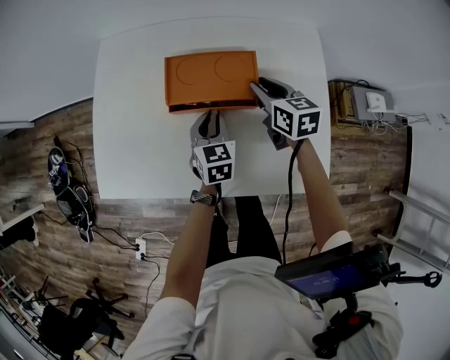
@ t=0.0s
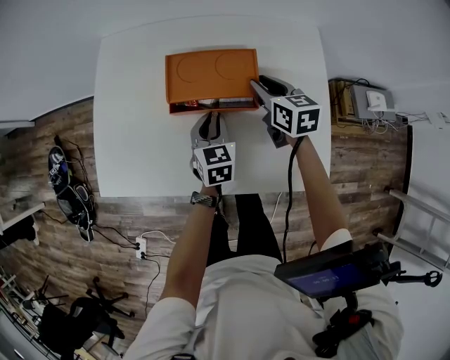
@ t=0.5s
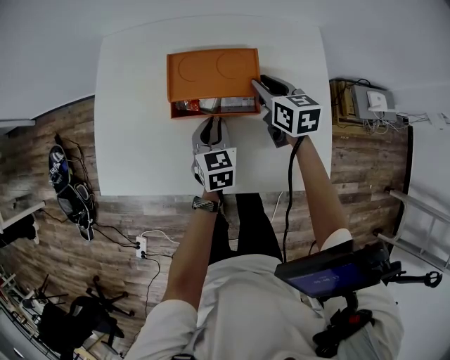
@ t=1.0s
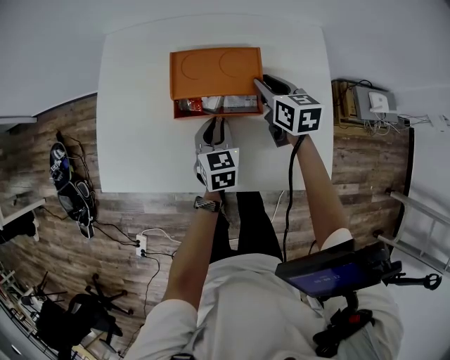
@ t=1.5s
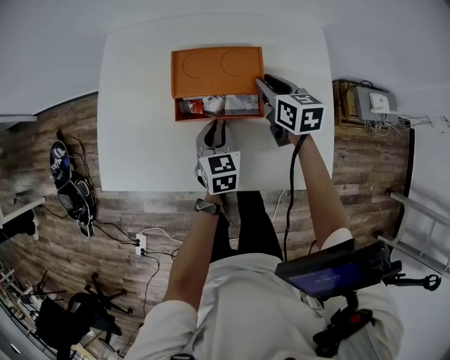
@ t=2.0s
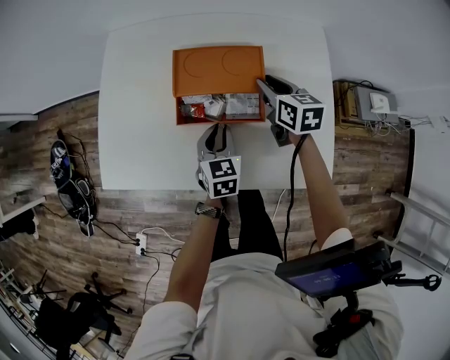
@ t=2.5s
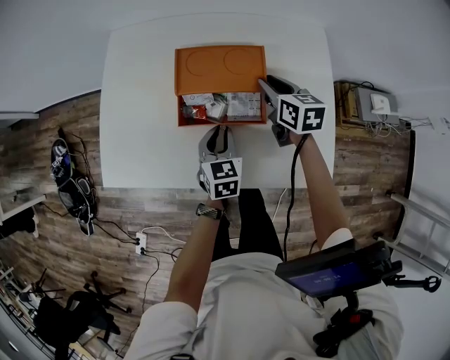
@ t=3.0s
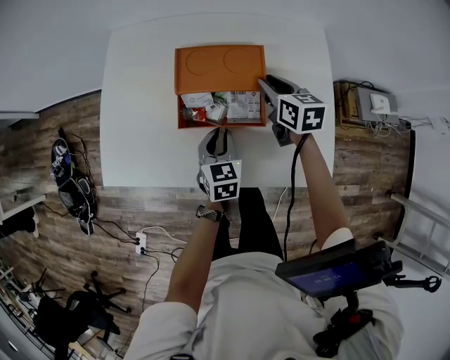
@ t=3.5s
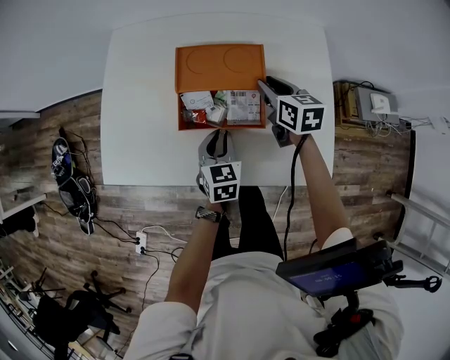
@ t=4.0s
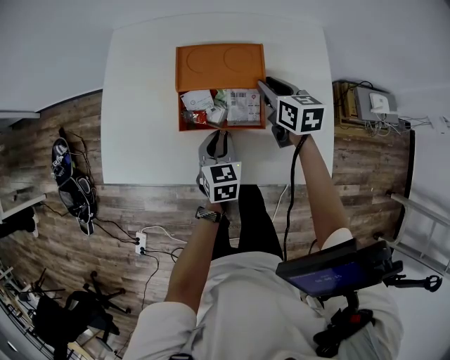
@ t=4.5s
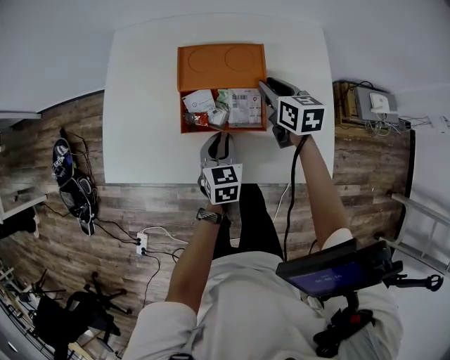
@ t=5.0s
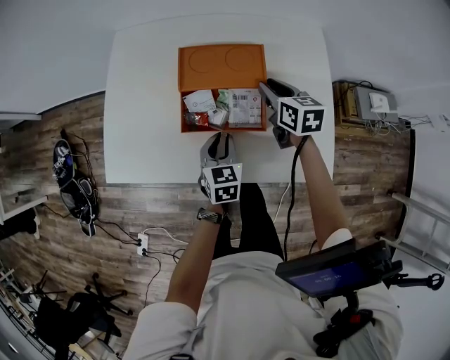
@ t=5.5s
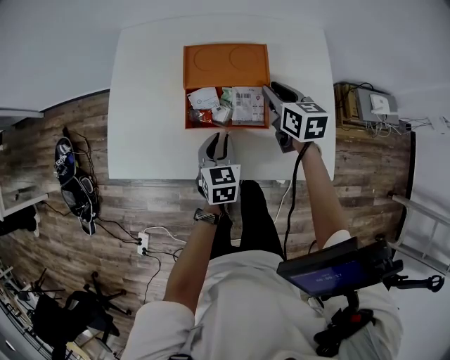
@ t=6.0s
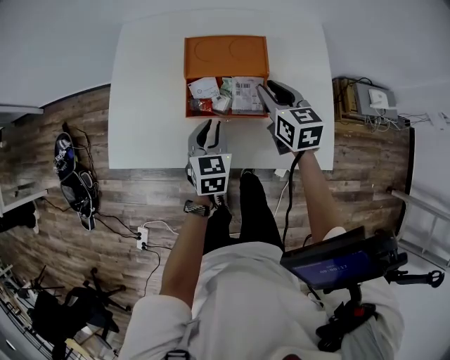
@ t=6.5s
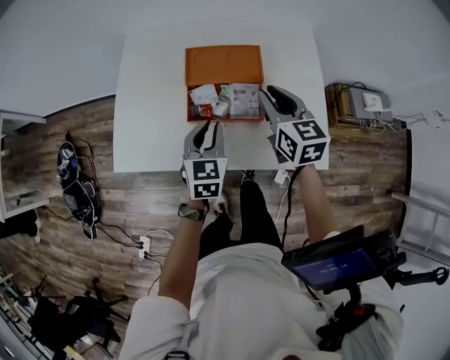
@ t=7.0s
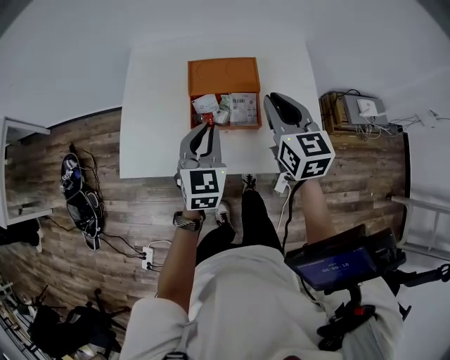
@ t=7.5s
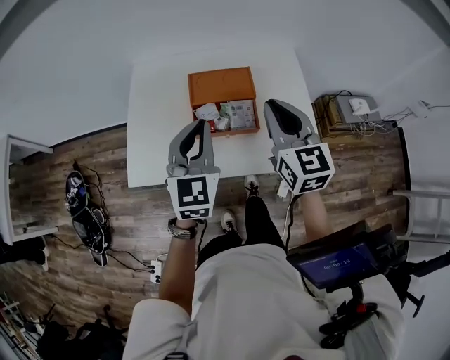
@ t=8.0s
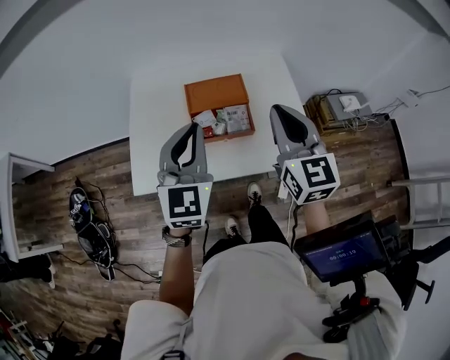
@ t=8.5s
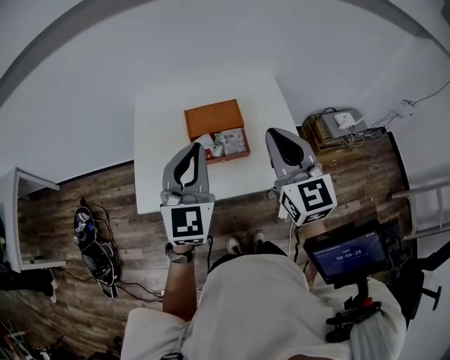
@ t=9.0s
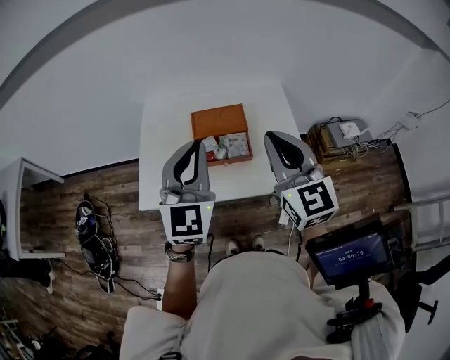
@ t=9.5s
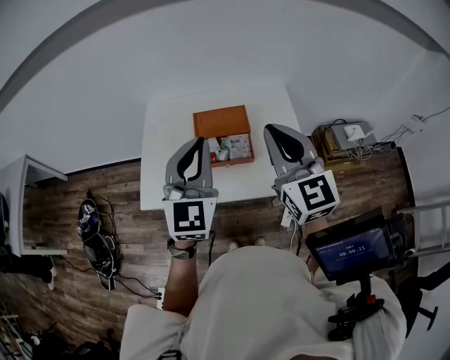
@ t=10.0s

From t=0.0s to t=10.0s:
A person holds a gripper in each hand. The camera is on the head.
From t=0.0s to t=2.0s: The grippers stay close to where they were, moving slightly.
From t=2.0s to t=4.0s: There are only small adjustments of the grippers.
From t=4.0s to t=6.0s: The two grippers keep their place.
From t=6.0s to t=8.0s: The right gripper shifts some 30 cm upward and backward, swivels approximately 30 degrees, and closes up; the left gripper is displaced upward by some 30 cm, and changes its angle by about 30 degrees.
From t=8.0s to t=10.0s: The left gripper travels upward by approximately 15 cm, while the right gripper is displaced upward and backward by approximately 15 cm.

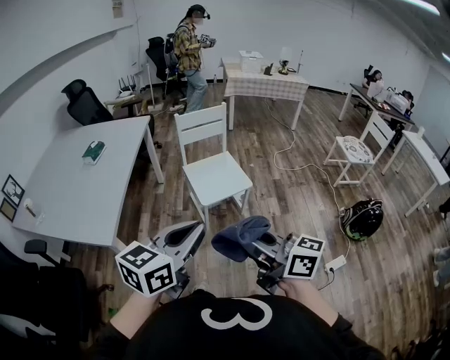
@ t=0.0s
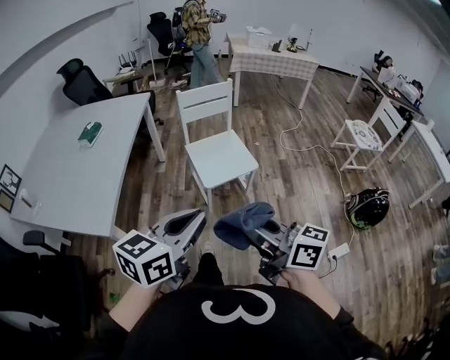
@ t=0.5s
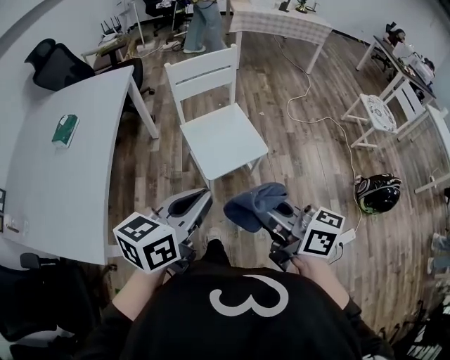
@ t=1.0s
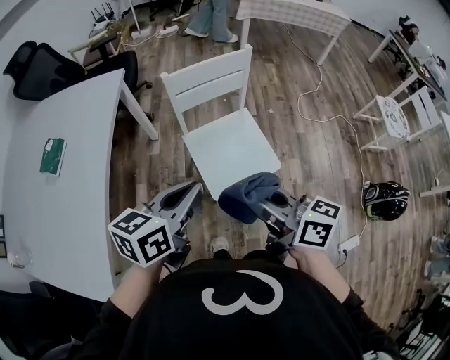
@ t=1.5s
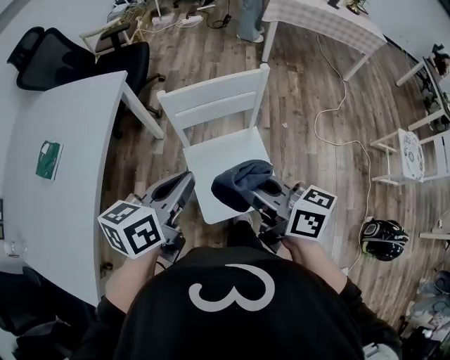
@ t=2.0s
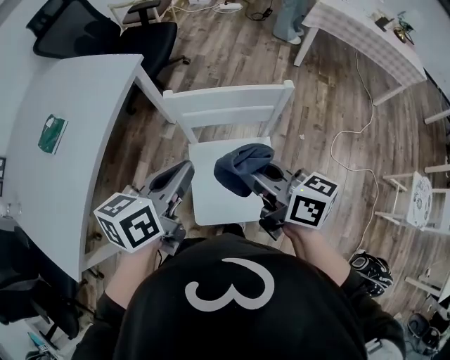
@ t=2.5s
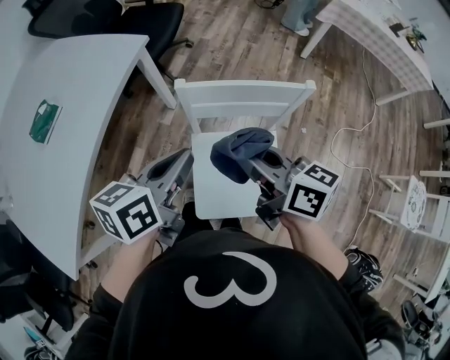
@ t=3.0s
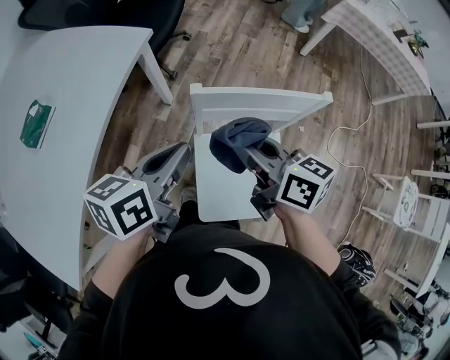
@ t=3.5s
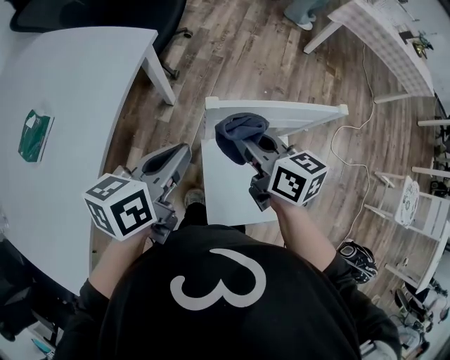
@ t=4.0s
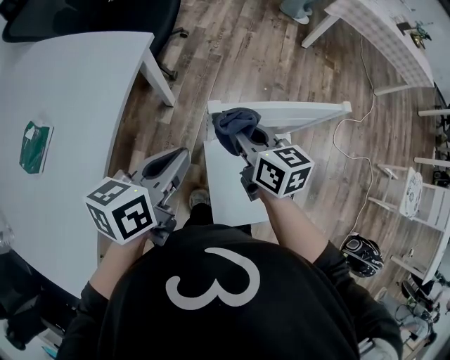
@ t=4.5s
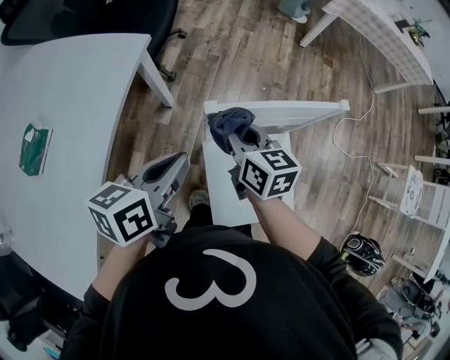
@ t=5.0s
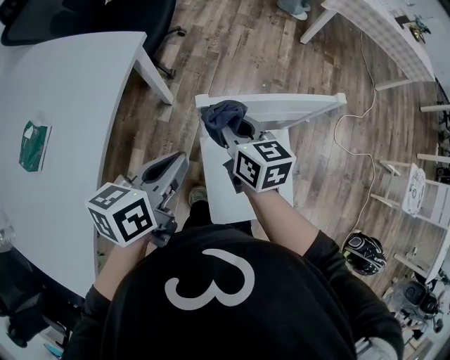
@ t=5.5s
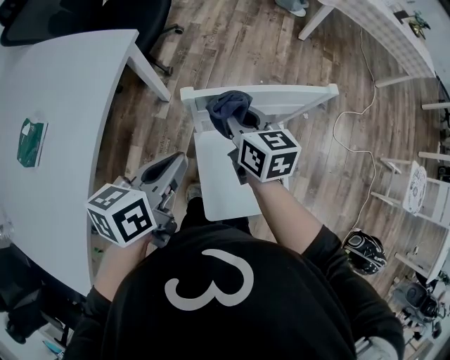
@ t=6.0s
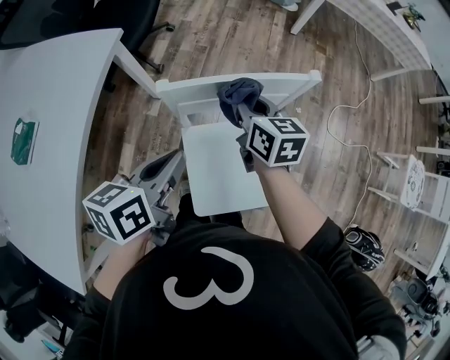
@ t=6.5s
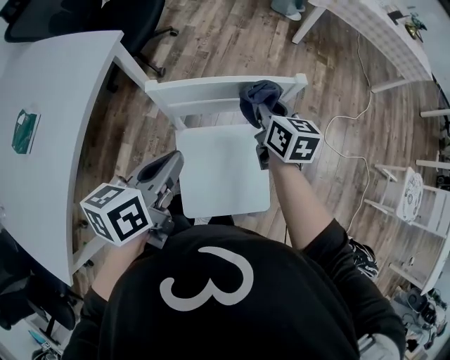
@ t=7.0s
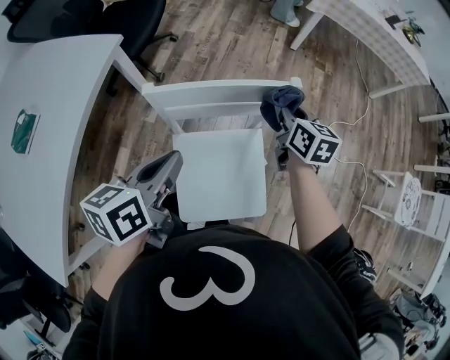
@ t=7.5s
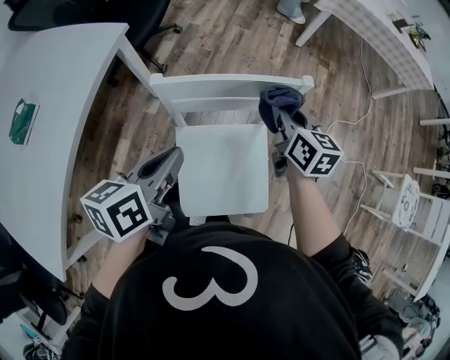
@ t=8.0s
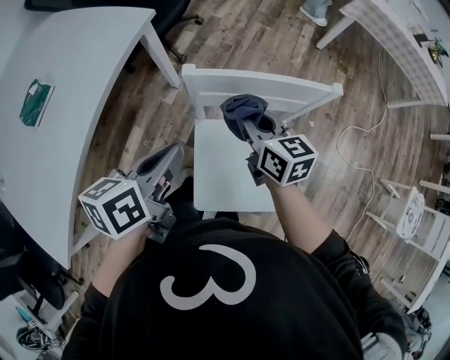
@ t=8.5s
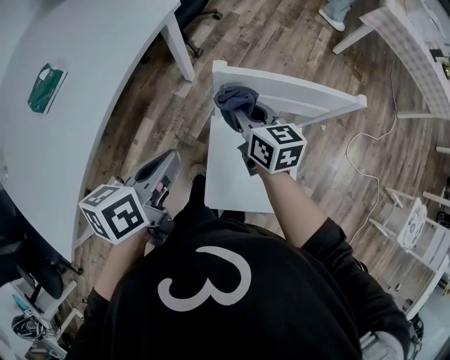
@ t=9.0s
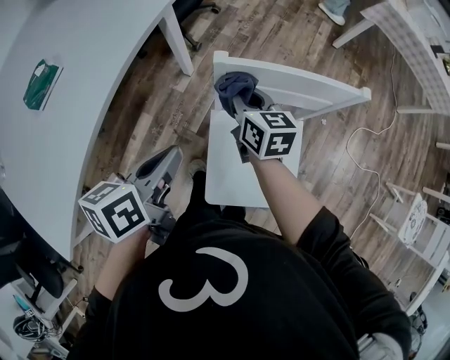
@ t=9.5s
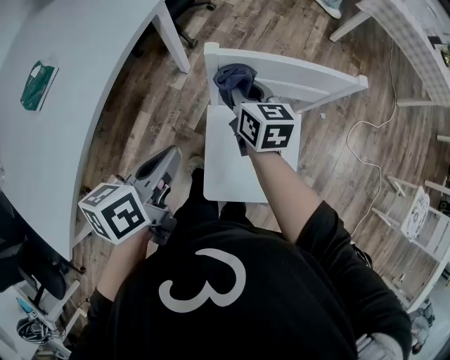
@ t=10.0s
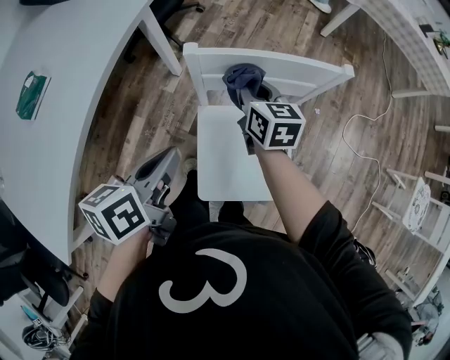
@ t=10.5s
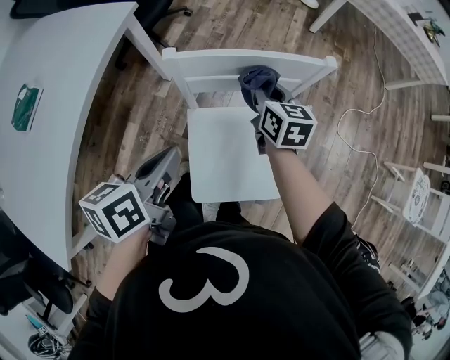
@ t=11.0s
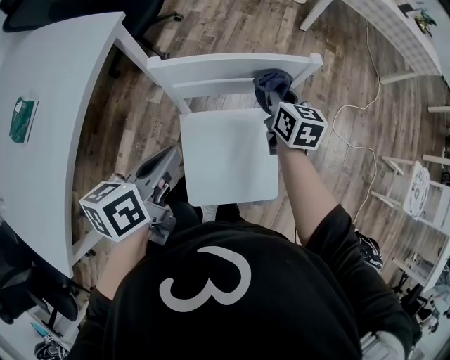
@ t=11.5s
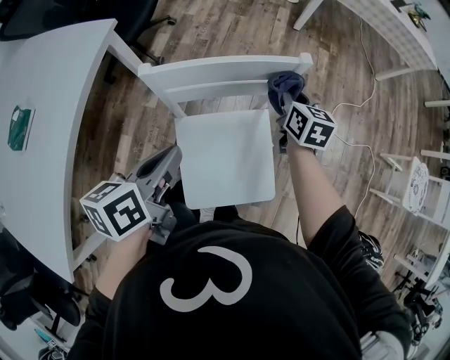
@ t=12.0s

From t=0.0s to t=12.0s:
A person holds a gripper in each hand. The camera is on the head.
From t=0.0s to t=2.0s: The pair of grippers is taken forward, some 60 cm. The left gripper swivels roughly 30 degrees.
From t=2.0s to t=4.0s: The right gripper travels forward and downward by roughly 30 cm, while the left gripper goes roughly 20 cm forward and to the left.
From t=4.0s to t=6.0s: The right gripper moves some 5 cm.
From t=6.0s to t=8.0s: The right gripper goes approximately 20 cm to the right; the left gripper moves to the right, roughly 10 cm.
From t=8.0s to t=10.0s: The right gripper is displaced to the left by approximately 25 cm, while the left gripper shifts some 10 cm to the left.
From t=10.0s to t=12.0s: The left gripper goes roughly 10 cm to the right, while the right gripper heads to the right, covering some 25 cm, and changes its angle by approximately 20 degrees.

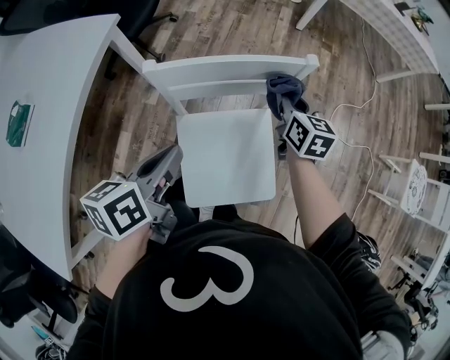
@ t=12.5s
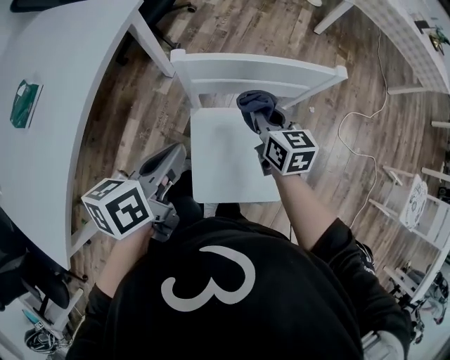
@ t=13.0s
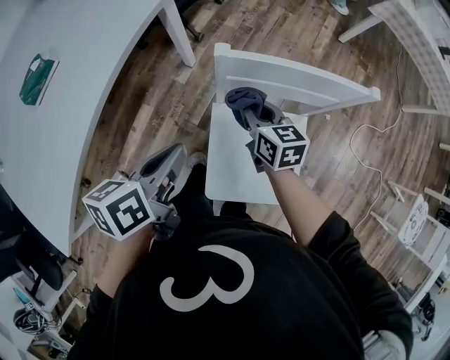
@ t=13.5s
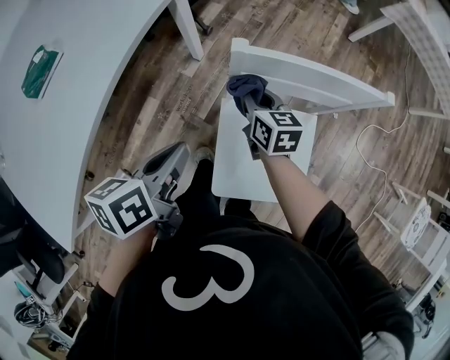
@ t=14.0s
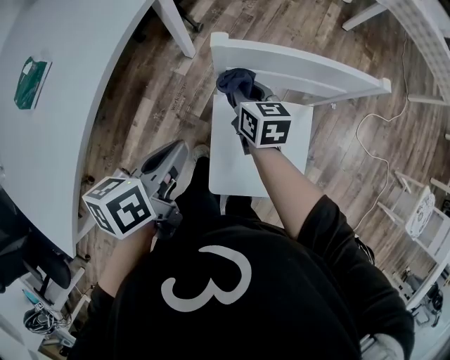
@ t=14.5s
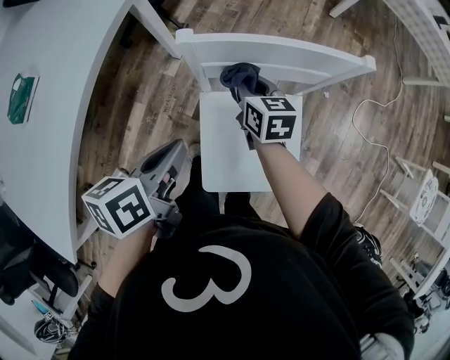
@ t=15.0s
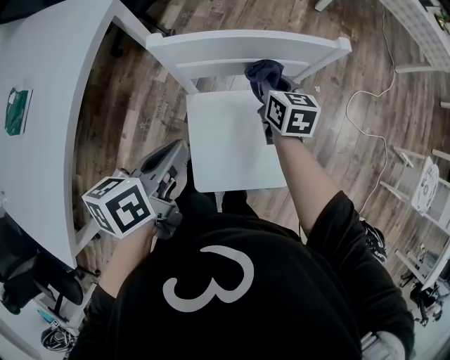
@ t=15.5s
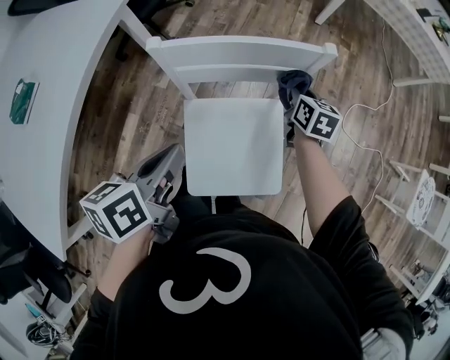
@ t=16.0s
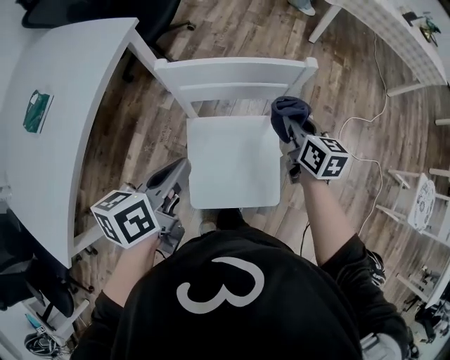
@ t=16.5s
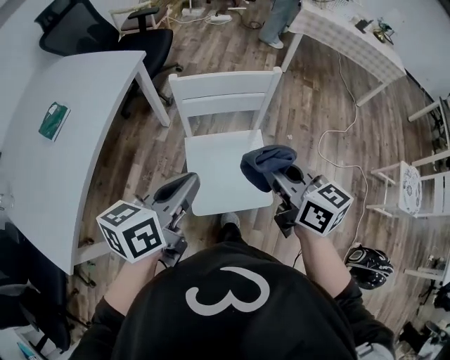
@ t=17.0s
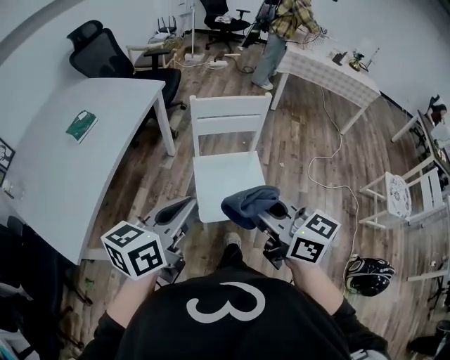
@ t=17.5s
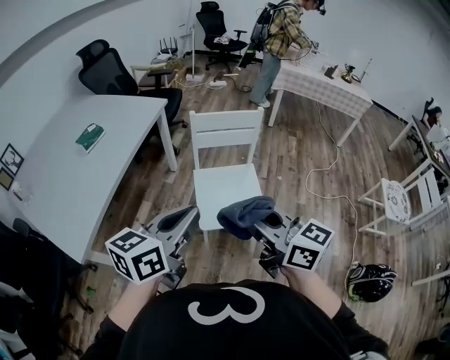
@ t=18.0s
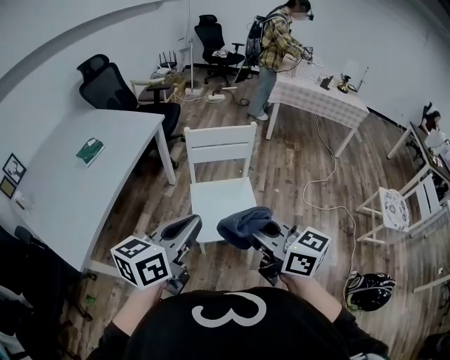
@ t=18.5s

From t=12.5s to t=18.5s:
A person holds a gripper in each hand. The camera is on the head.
From t=12.5s to t=14.5s: The right gripper moves to the left, some 25 cm, and swivels approximately 20 degrees. The left gripper travels to the left by roughly 10 cm.
From t=14.5s to t=16.5s: The right gripper moves to the right, roughly 25 cm; the left gripper goes some 15 cm to the right and upward.
From t=16.5s to t=18.5s: The two grippers go about 50 cm backward and upward. The right gripper turns by approximately 40 degrees; the left gripper swivels about 30 degrees.
